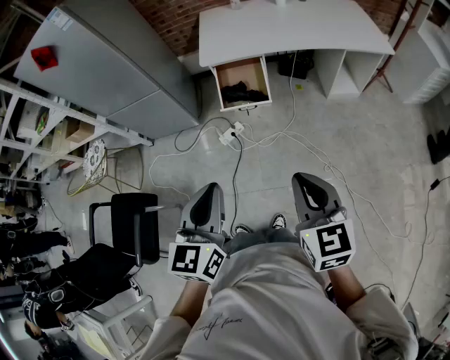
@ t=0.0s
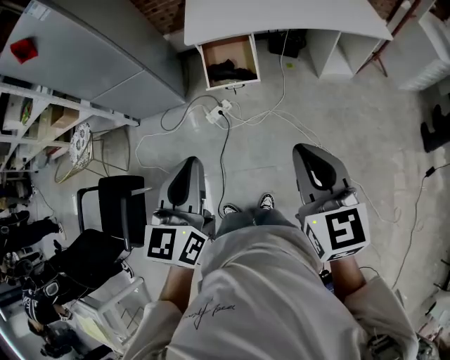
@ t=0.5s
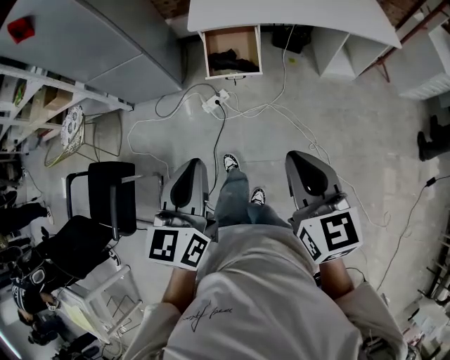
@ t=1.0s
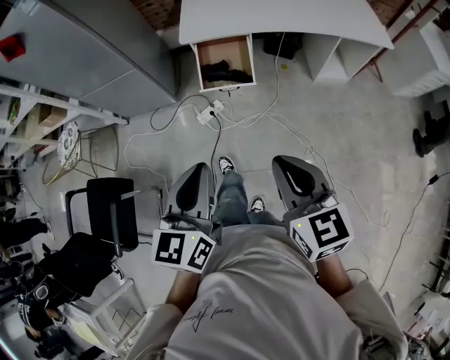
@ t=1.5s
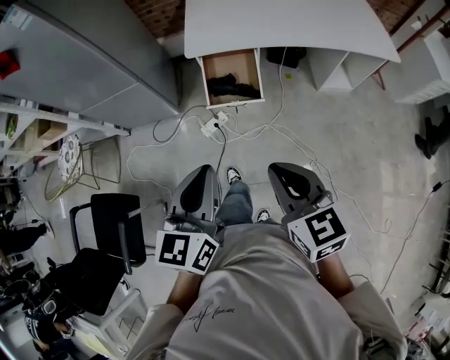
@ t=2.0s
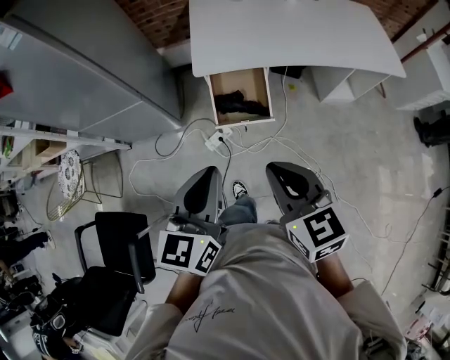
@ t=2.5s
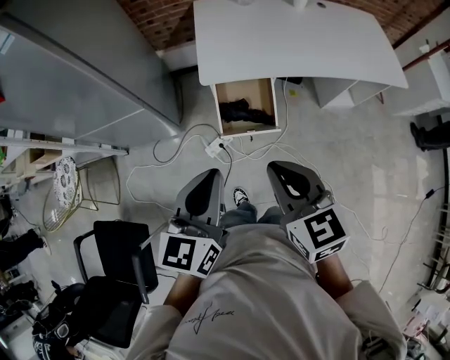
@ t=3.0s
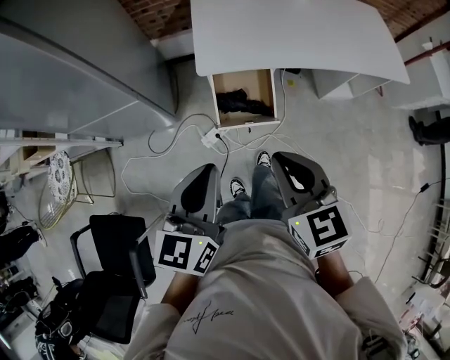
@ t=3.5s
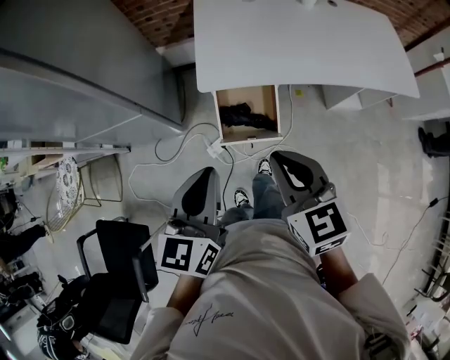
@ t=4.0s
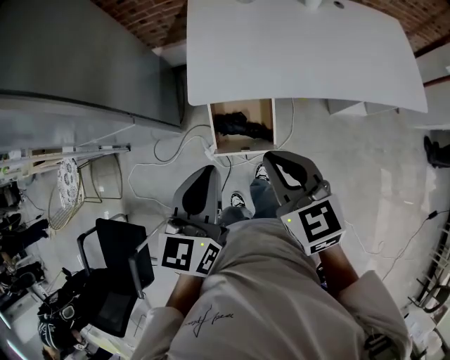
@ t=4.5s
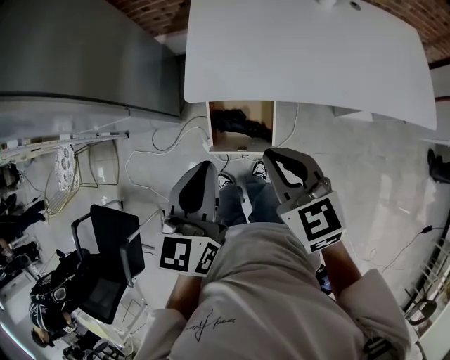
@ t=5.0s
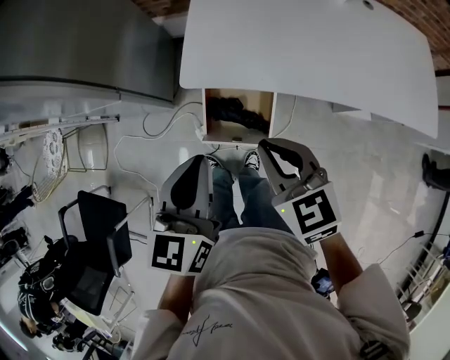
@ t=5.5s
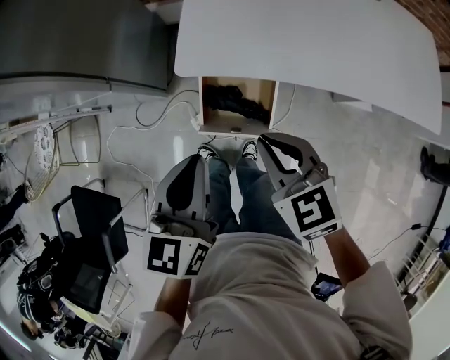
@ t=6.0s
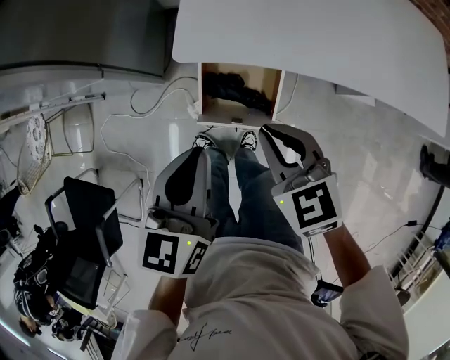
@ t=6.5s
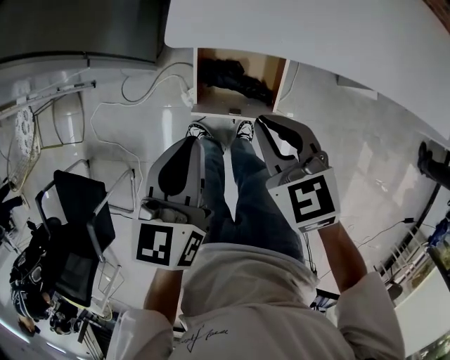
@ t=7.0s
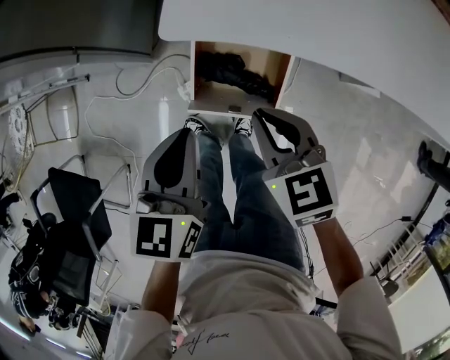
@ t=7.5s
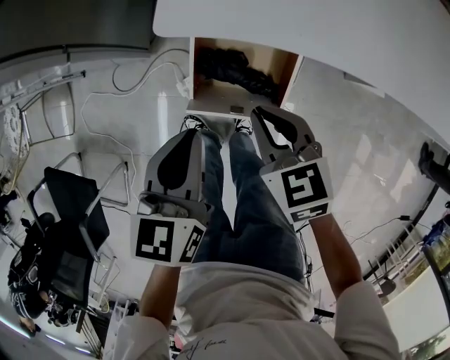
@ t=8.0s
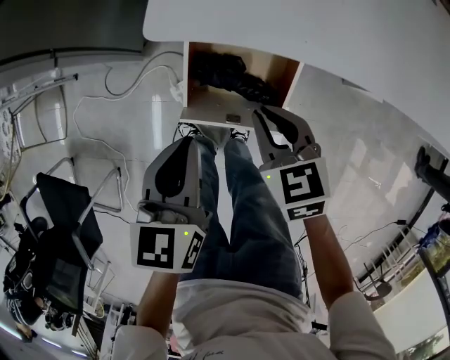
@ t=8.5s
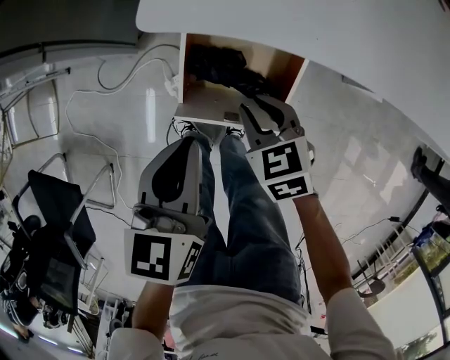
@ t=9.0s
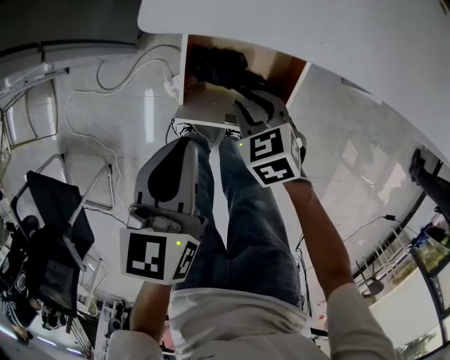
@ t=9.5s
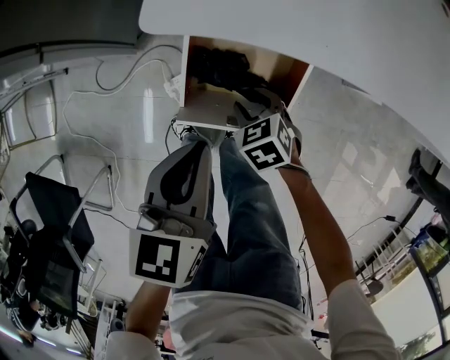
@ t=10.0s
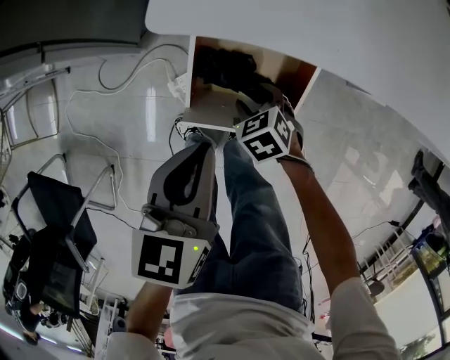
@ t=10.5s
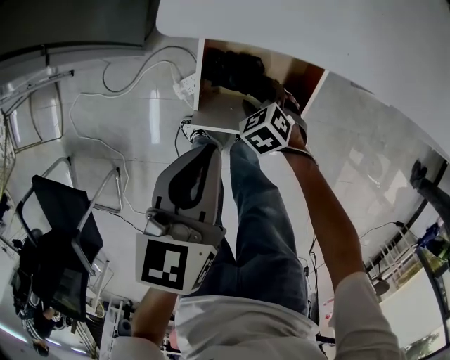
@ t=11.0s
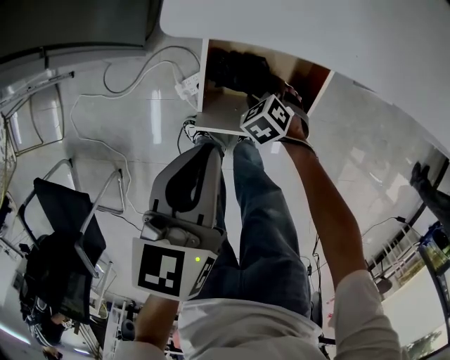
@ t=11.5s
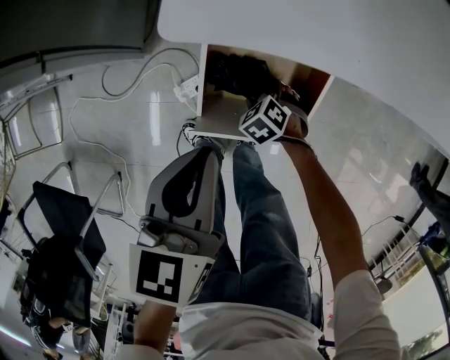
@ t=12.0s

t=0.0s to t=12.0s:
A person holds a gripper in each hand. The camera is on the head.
t=0.0s to t=2.0s: The two grippers go roughly 15 cm forward.
t=2.0s to t=4.0s: The grippers both shift forward by approximately 25 cm.
t=4.0s to t=6.0s: The right gripper shifts about 15 cm downward, forward and to the right, and rotates approximately 20 degrees. The left gripper shifts roughly 15 cm forward, to the right and downward.
t=6.0s to t=8.0s: Both grippers travel together downward, about 20 cm.
t=8.0s to t=10.0s: The left gripper is displaced downward by roughly 5 cm; the right gripper travels downward by approximately 20 cm, rotates about 20 degrees, and opens up.
t=10.0s to t=12.0s: The right gripper goes roughly 10 cm downward, and opens.

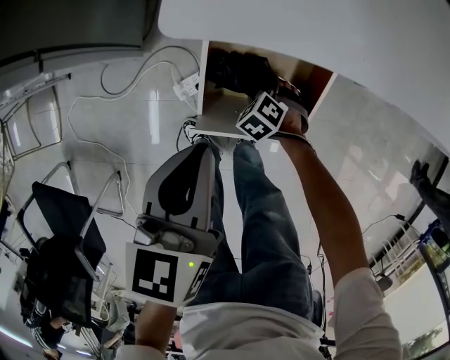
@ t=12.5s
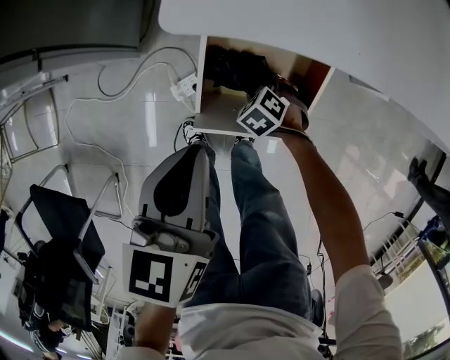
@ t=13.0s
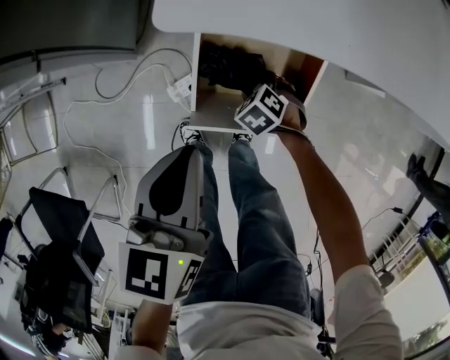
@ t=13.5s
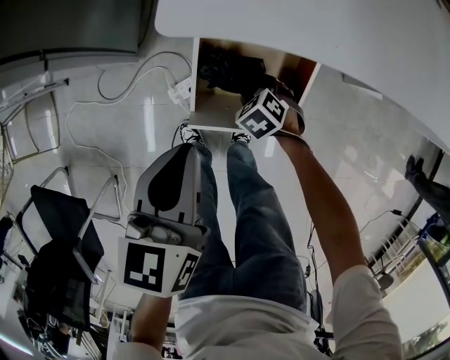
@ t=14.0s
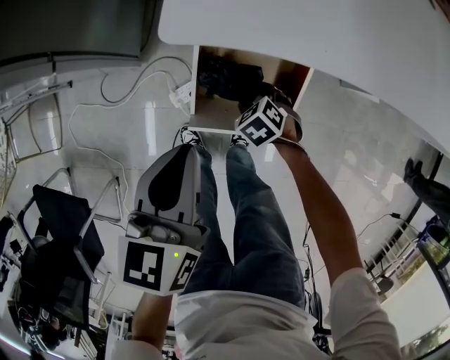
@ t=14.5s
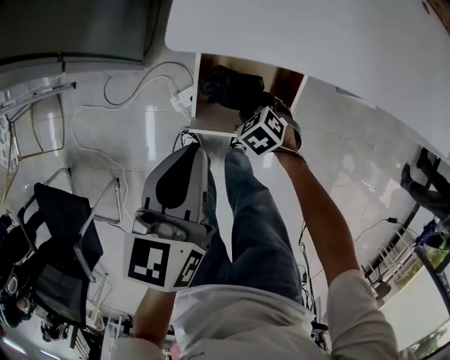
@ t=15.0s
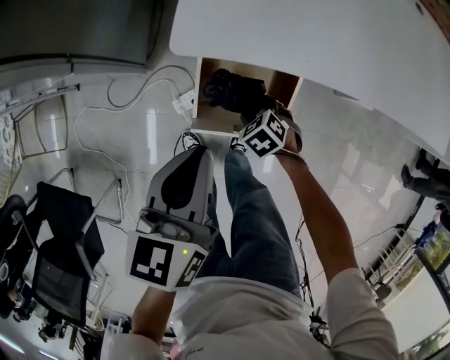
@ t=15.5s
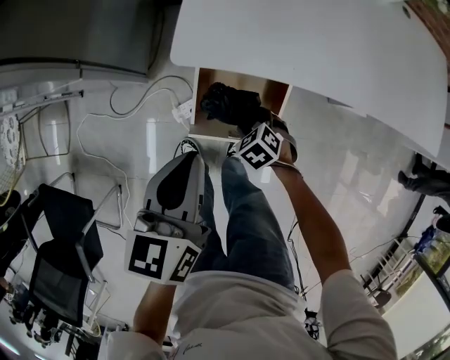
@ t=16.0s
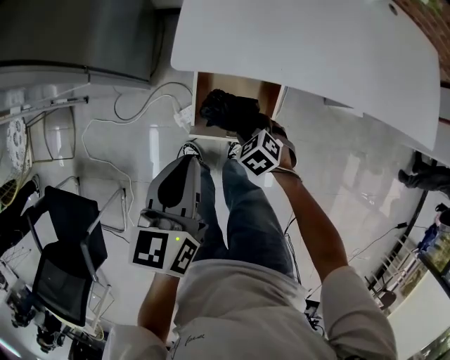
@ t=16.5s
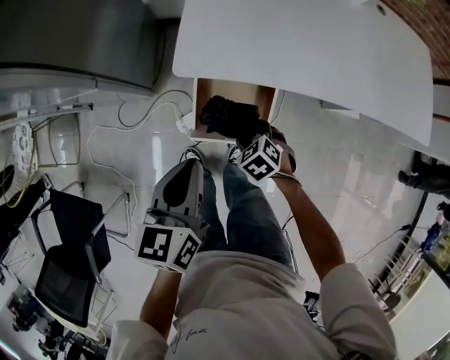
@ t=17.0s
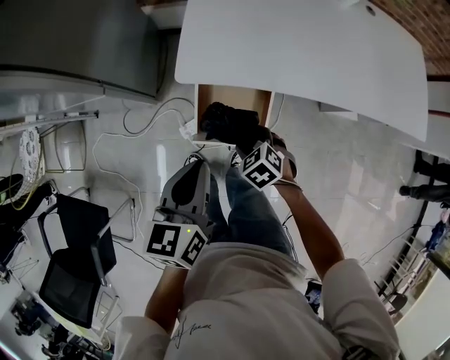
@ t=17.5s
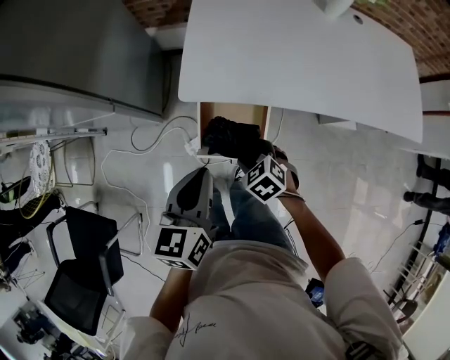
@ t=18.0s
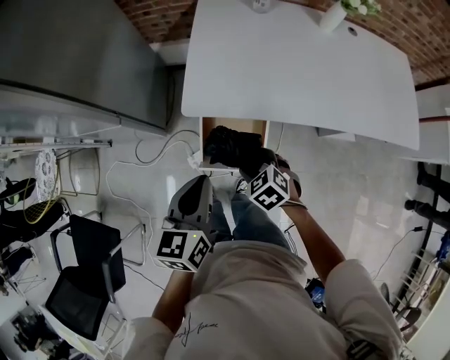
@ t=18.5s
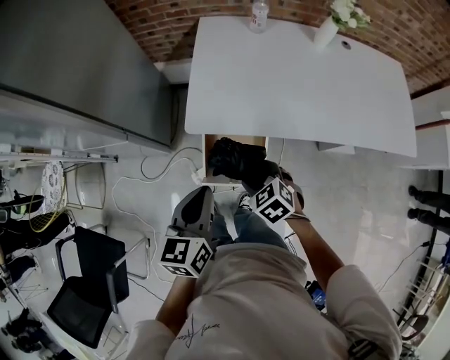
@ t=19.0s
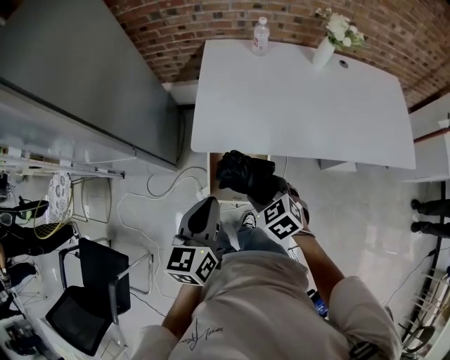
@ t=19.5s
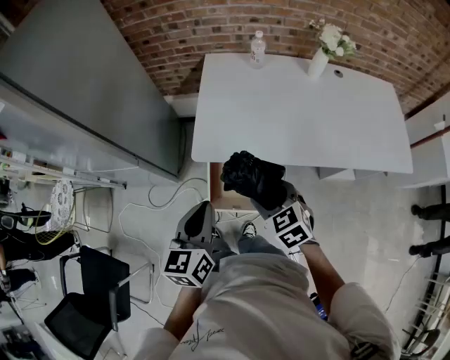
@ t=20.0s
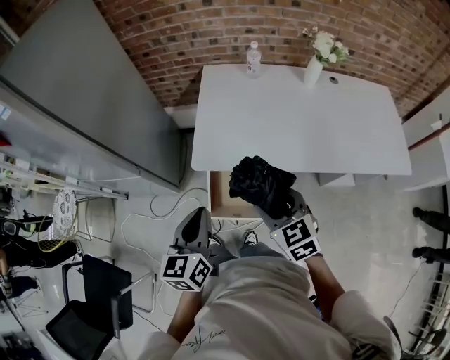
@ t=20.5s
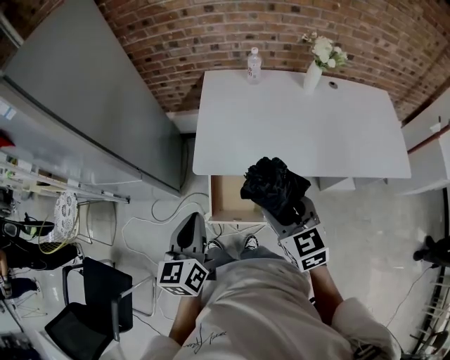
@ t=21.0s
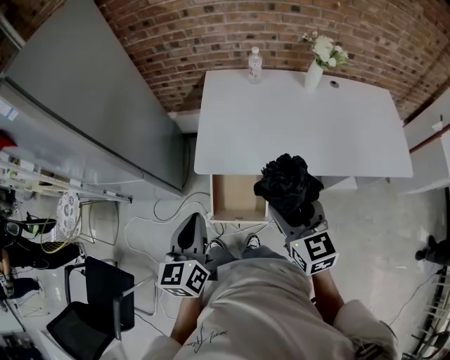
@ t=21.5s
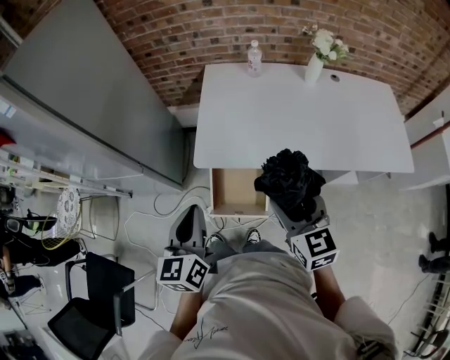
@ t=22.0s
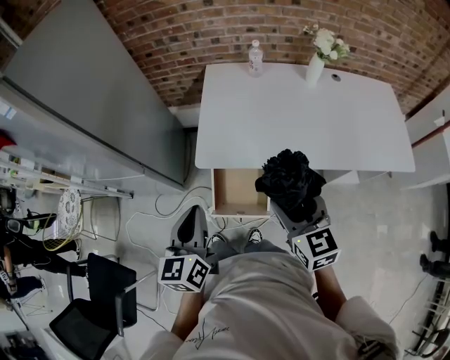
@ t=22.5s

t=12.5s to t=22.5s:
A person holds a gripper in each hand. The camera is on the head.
t=12.5s to t=14.5s: The right gripper travels upward by approximately 10 cm.
t=14.5s to t=16.5s: The grippers both shift upward by approximately 10 cm.
t=16.5s to t=18.5s: The right gripper is displaced upward by roughly 15 cm. Meanwhile the left gripper heads upward, covering some 10 cm.
t=18.5s to t=20.5s: The left gripper heads upward, covering some 5 cm. Meanwhile the right gripper moves upward, roughly 20 cm, and rotates about 30 degrees.
t=20.5s to t=22.5s: The right gripper travels upward by approximately 5 cm.

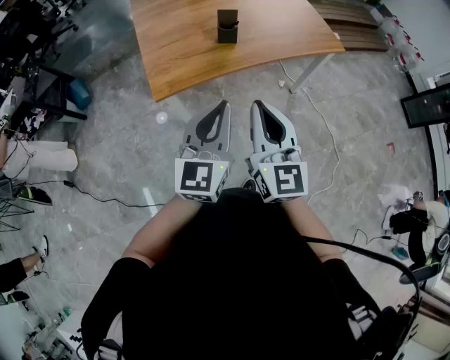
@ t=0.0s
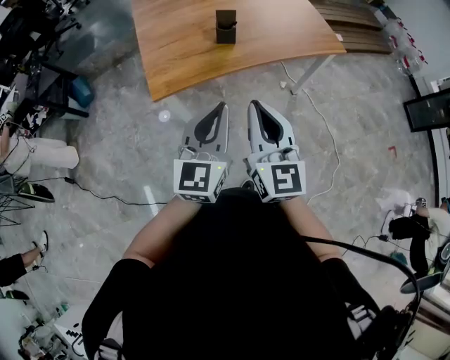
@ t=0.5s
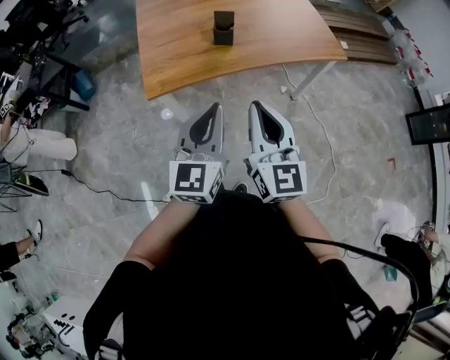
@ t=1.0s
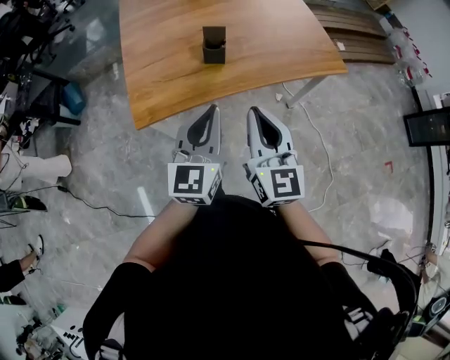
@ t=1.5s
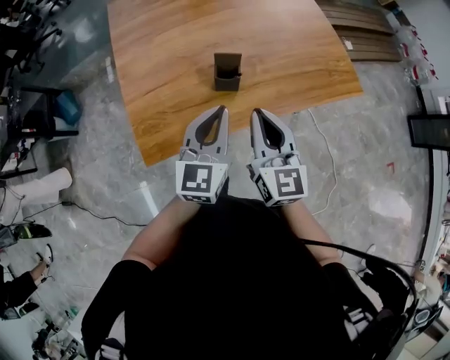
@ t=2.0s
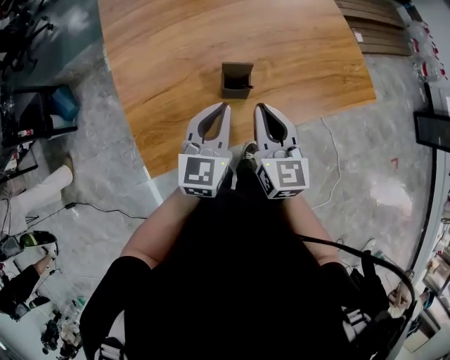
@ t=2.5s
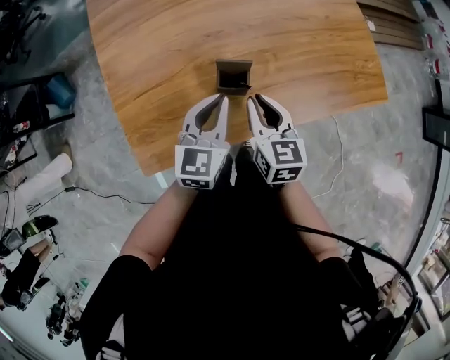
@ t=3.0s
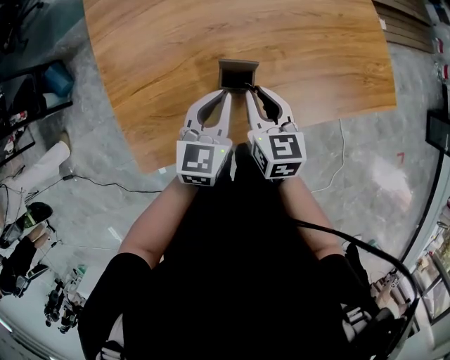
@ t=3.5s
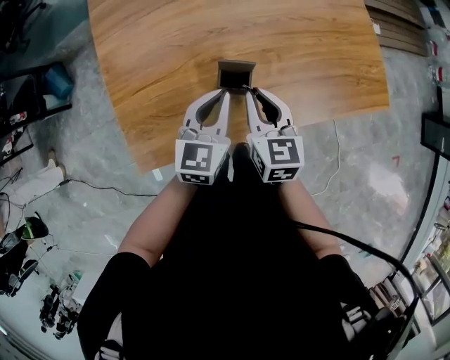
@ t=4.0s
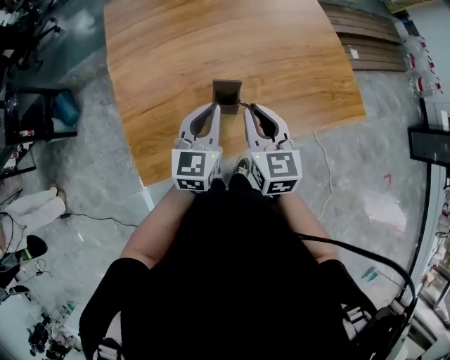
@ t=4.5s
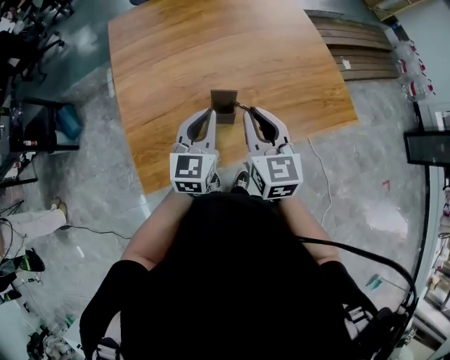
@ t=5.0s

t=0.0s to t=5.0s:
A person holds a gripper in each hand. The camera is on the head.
t=0.0s to t=2.5s: The pair of grippers is taken forward, approximately 40 cm.
t=2.5s to t=5.0s: The left gripper reaches some 10 cm downward, then returns. Meanwhile the right gripper heads upward, covering approximately 5 cm.
